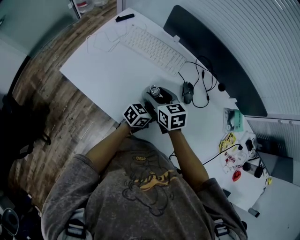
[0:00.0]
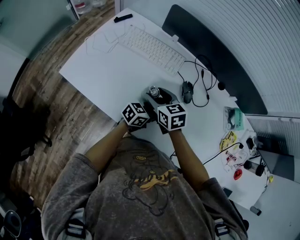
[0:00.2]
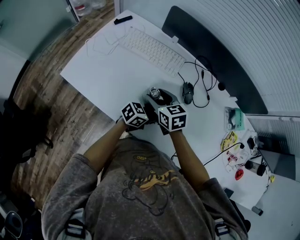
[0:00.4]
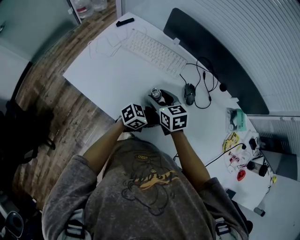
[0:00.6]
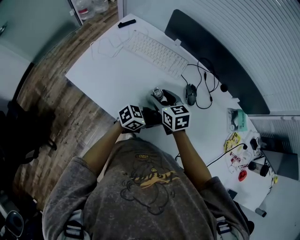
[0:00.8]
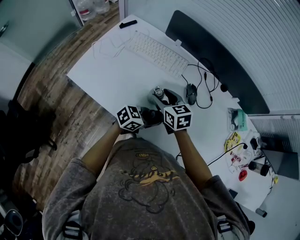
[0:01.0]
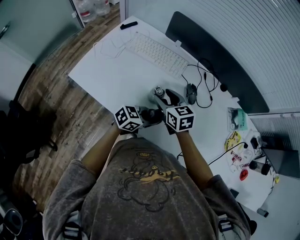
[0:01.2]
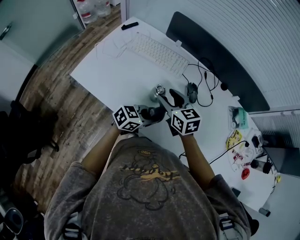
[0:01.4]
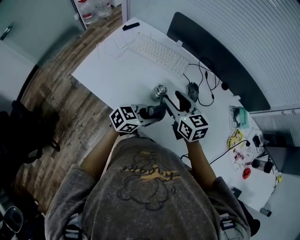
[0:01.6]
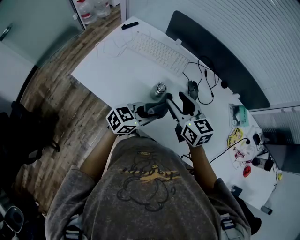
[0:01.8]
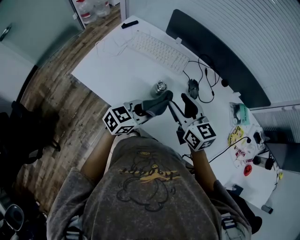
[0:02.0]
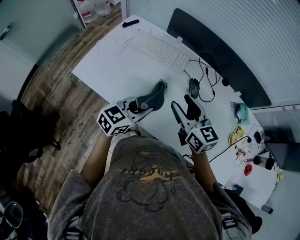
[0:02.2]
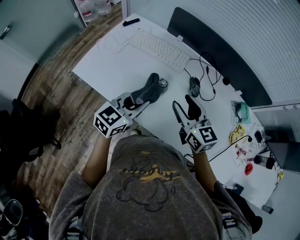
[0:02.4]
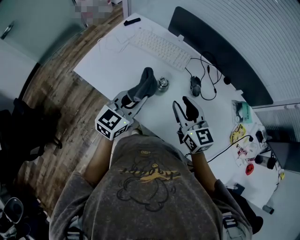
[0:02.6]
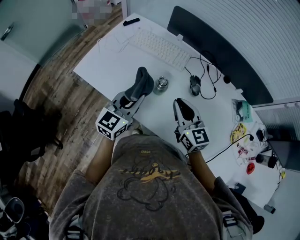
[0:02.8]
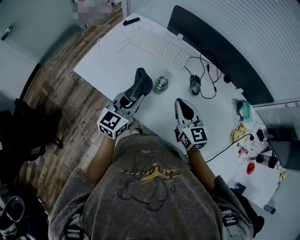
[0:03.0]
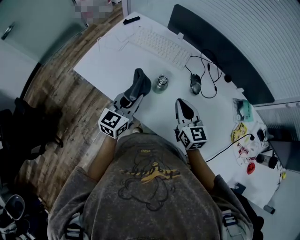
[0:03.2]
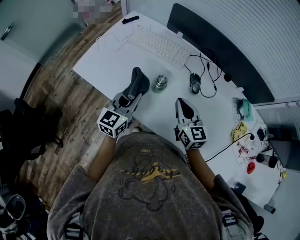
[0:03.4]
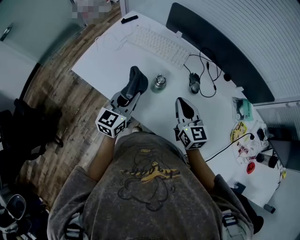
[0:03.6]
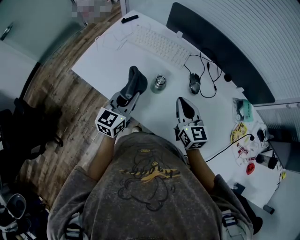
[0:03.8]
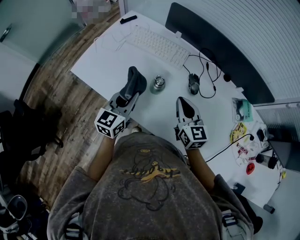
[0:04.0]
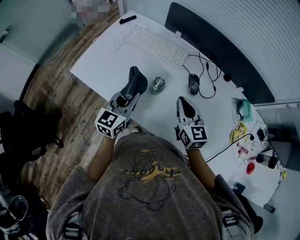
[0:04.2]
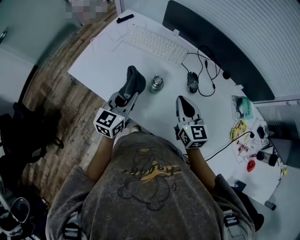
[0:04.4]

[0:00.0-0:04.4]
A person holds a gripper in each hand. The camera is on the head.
0:00.0 to 0:01.4: The left gripper ends up some 10 cm from where it was, while the right gripper goes some 5 cm upward.
0:01.4 to 0:03.0: The left gripper moves to the left and upward, roughly 15 cm, and rotates about 50 degrees. Meanwhile the right gripper heads to the right and backward, covering some 10 cm, goes upward and returns, roughly 10 cm each way, and closes.
0:03.0 to 0:04.4: The grippers make only small movements.

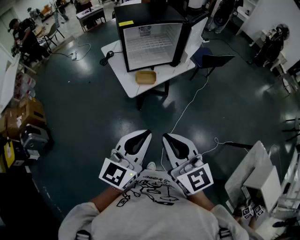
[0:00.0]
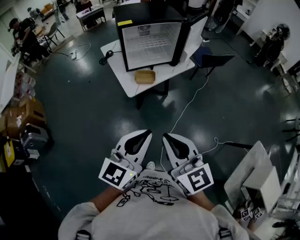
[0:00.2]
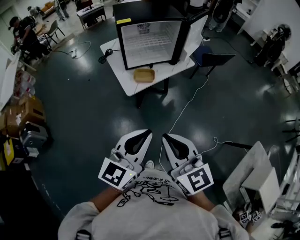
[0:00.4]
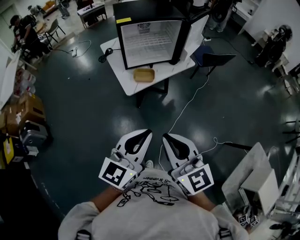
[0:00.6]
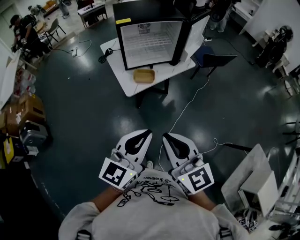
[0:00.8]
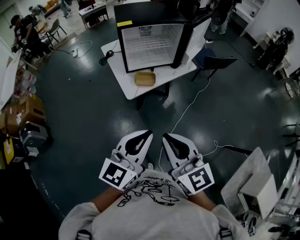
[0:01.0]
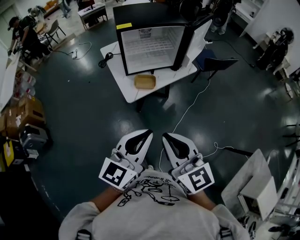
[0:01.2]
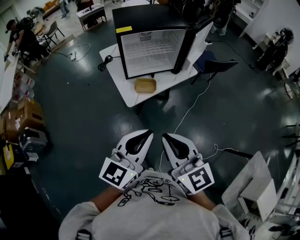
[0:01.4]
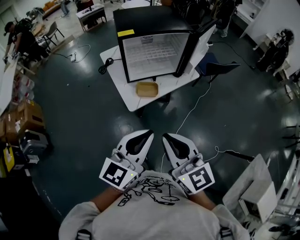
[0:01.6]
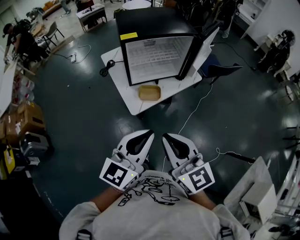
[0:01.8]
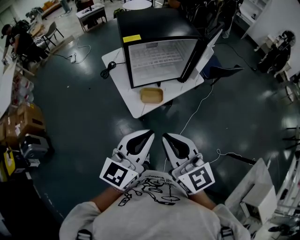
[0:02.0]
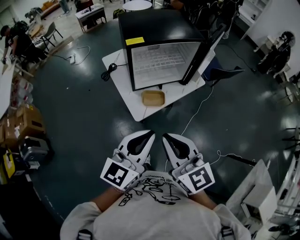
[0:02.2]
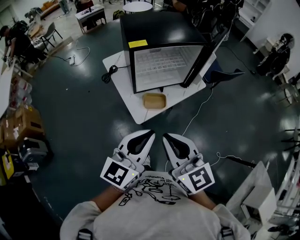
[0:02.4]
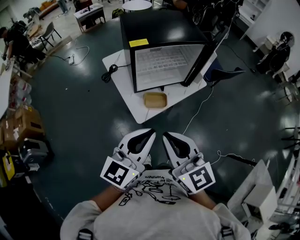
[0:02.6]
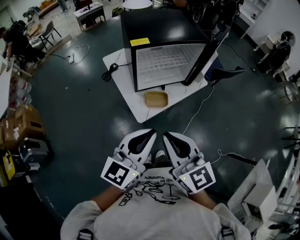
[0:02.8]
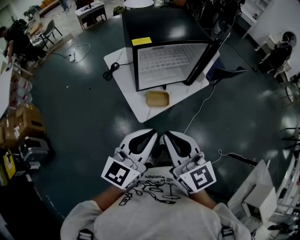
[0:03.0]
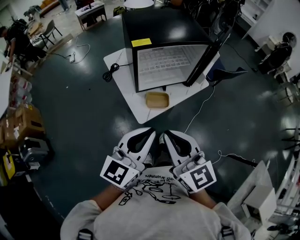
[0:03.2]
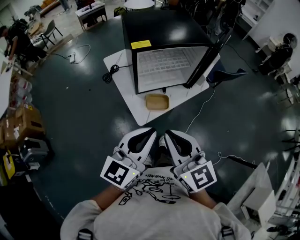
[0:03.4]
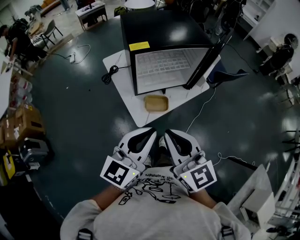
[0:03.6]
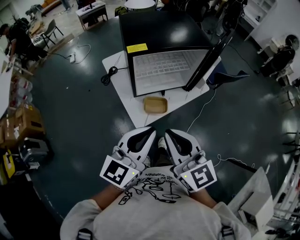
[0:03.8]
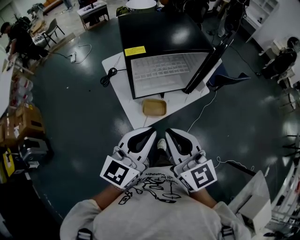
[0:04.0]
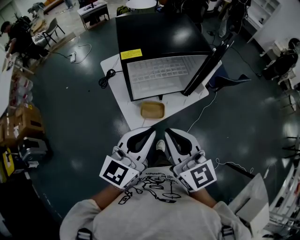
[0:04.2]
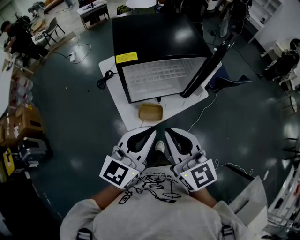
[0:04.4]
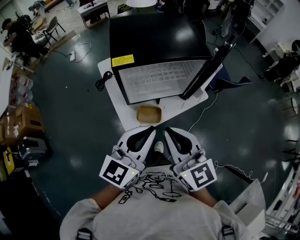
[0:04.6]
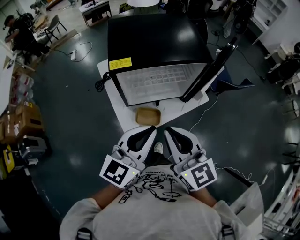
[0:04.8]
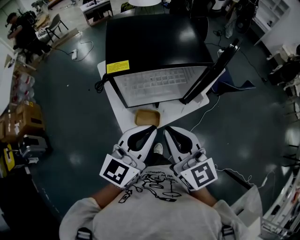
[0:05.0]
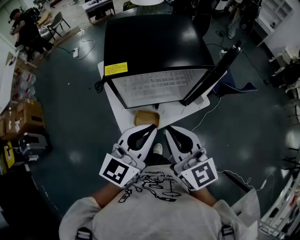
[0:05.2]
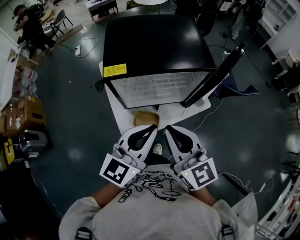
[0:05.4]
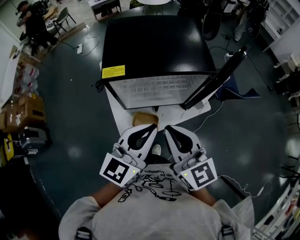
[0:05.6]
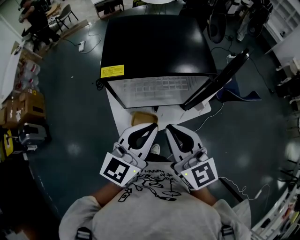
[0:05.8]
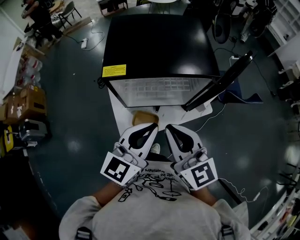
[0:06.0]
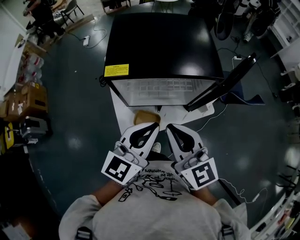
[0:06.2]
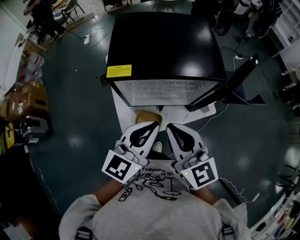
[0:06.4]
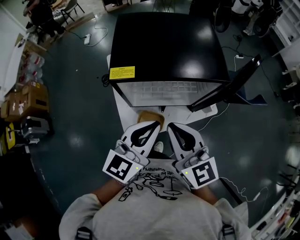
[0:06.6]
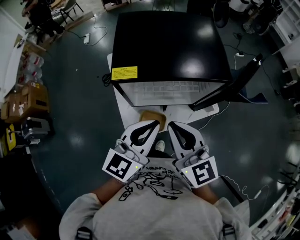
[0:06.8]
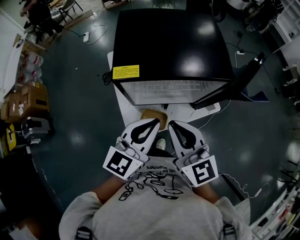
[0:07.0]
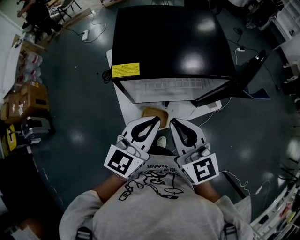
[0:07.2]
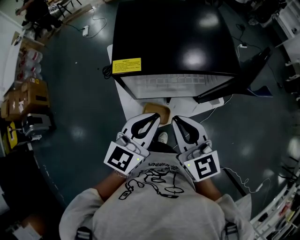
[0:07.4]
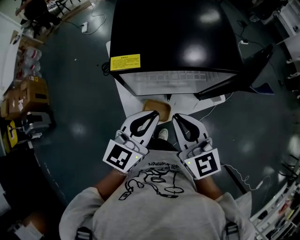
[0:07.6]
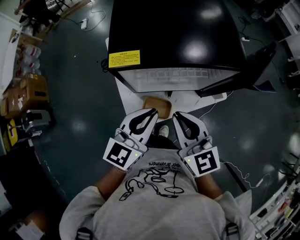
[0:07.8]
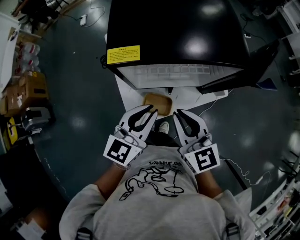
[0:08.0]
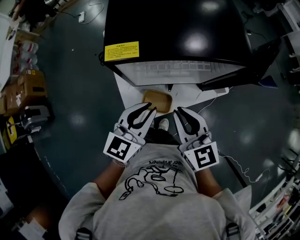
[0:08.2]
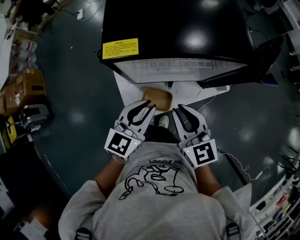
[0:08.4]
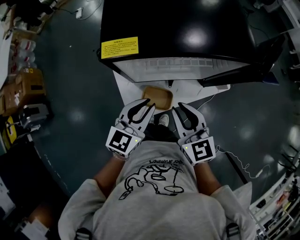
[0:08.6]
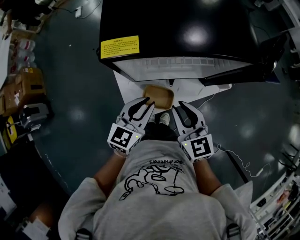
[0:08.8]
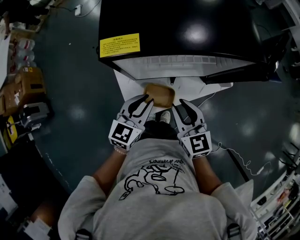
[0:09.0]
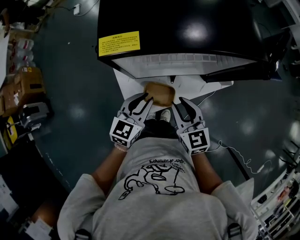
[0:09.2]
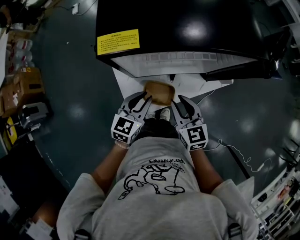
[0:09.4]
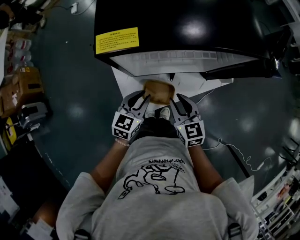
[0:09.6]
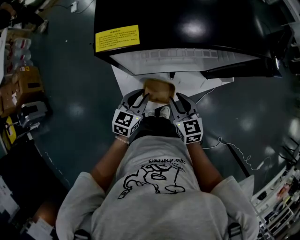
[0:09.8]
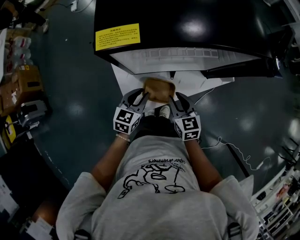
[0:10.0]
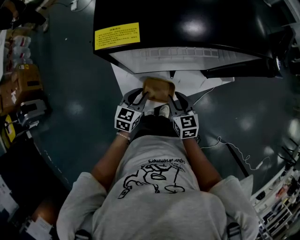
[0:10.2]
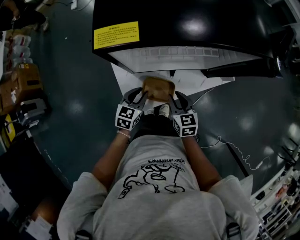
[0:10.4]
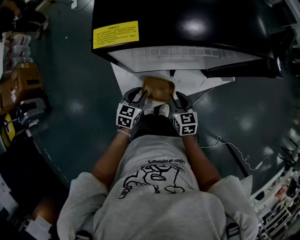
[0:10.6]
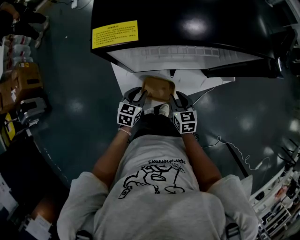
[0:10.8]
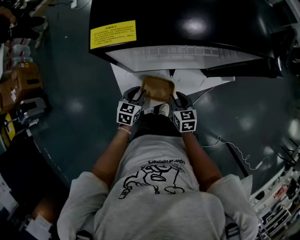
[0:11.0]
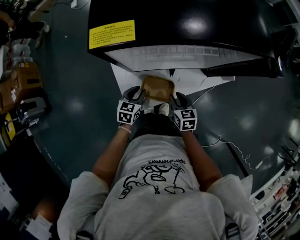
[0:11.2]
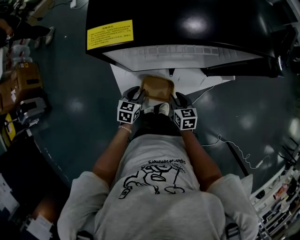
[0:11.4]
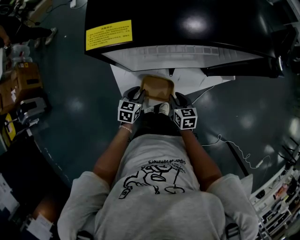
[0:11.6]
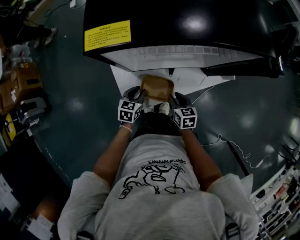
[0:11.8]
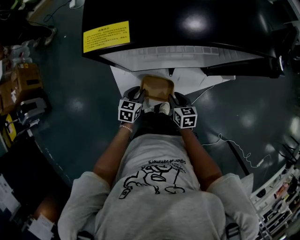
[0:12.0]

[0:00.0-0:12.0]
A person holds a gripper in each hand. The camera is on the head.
0:00.0 to 0:01.6: The two grippers go about 15 cm forward.
0:01.6 to 0:03.0: The grippers both shift forward and to the left by approximately 15 cm.
0:03.0 to 0:04.4: Both grippers travel together forward and to the right, some 15 cm.
0:04.4 to 0:06.0: Both grippers move forward and to the right, some 15 cm.
0:06.0 to 0:07.6: The right gripper shifts about 5 cm downward. The left gripper moves downward and to the left, some 10 cm.
0:07.6 to 0:09.0: The grippers both shift downward by about 15 cm.
0:09.0 to 0:10.4: The two grippers go some 15 cm downward.
0:10.4 to 0:12.0: Both grippers move downward, about 10 cm.

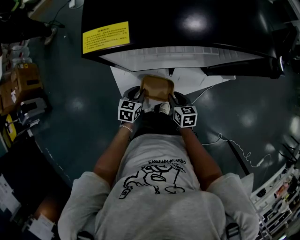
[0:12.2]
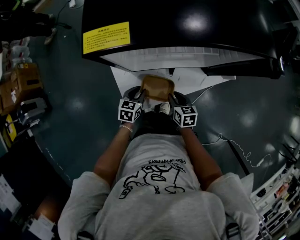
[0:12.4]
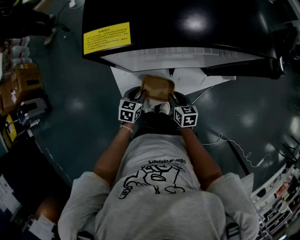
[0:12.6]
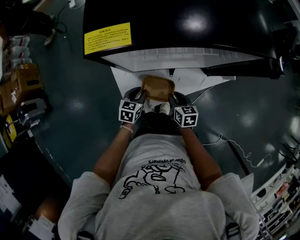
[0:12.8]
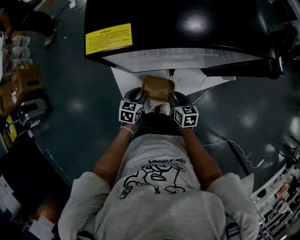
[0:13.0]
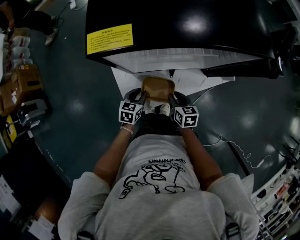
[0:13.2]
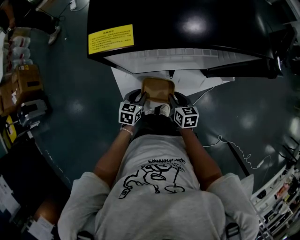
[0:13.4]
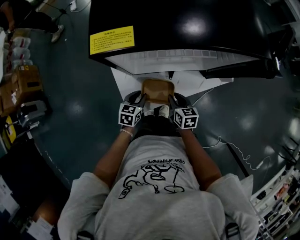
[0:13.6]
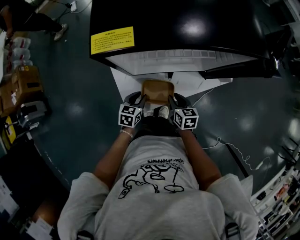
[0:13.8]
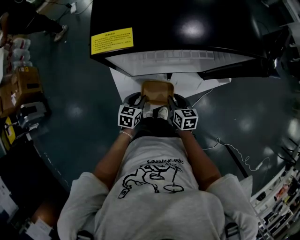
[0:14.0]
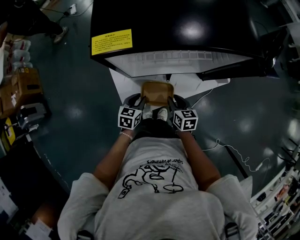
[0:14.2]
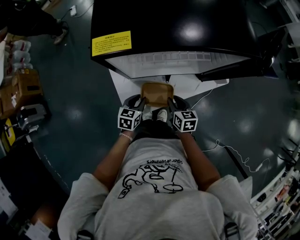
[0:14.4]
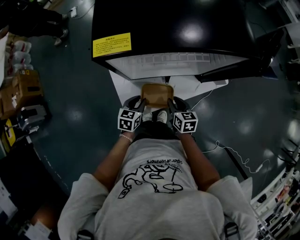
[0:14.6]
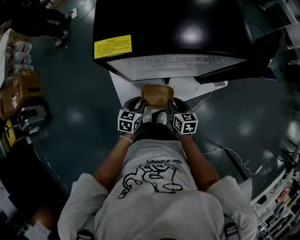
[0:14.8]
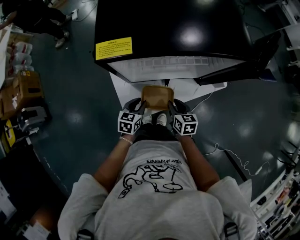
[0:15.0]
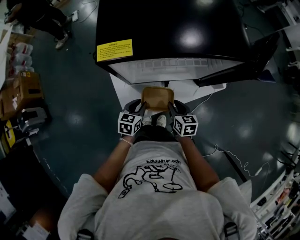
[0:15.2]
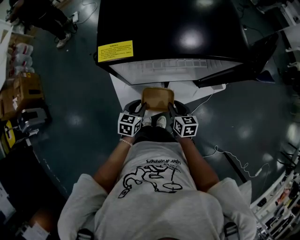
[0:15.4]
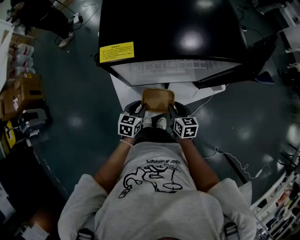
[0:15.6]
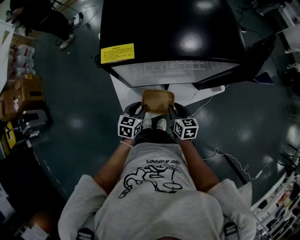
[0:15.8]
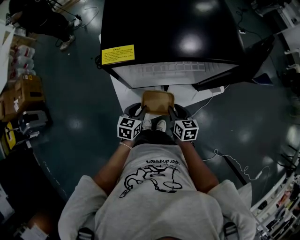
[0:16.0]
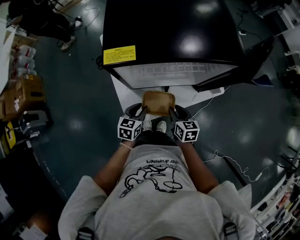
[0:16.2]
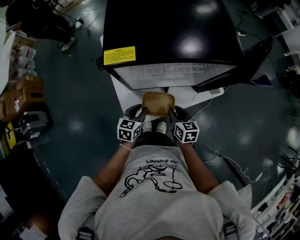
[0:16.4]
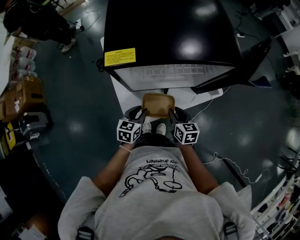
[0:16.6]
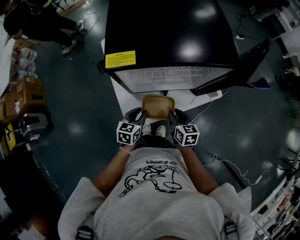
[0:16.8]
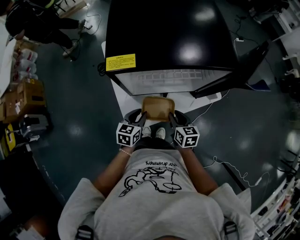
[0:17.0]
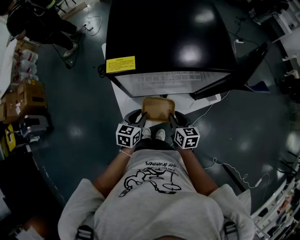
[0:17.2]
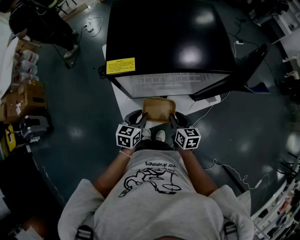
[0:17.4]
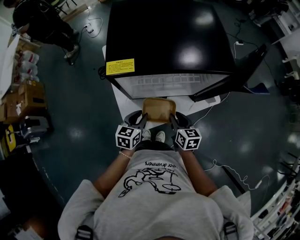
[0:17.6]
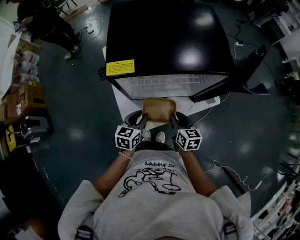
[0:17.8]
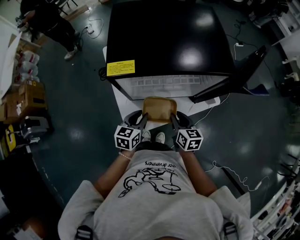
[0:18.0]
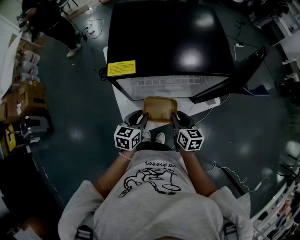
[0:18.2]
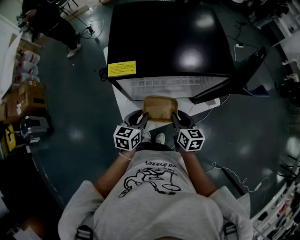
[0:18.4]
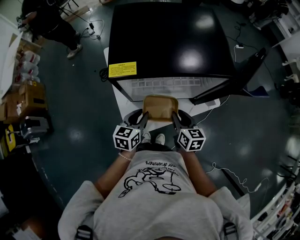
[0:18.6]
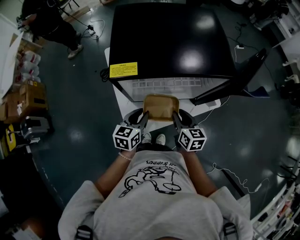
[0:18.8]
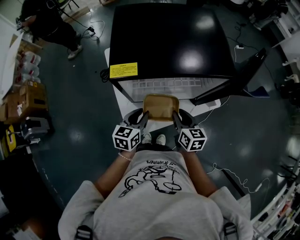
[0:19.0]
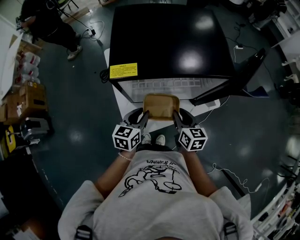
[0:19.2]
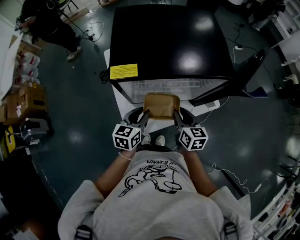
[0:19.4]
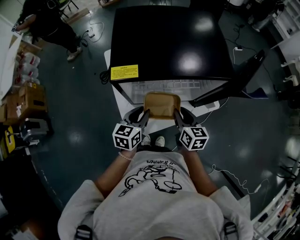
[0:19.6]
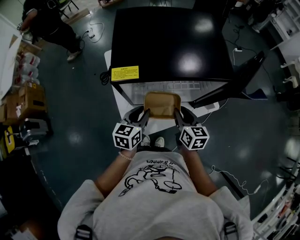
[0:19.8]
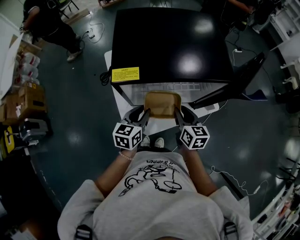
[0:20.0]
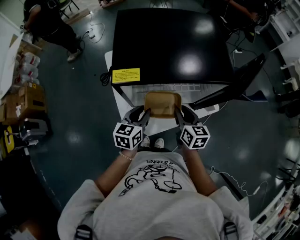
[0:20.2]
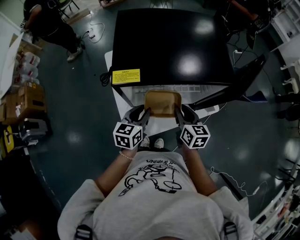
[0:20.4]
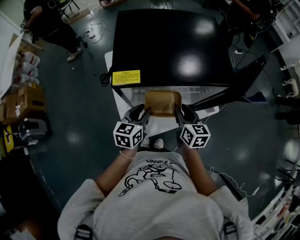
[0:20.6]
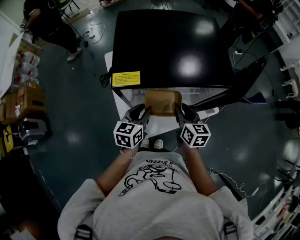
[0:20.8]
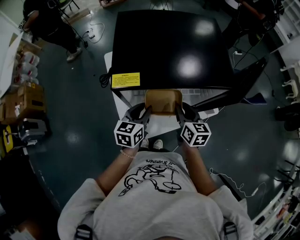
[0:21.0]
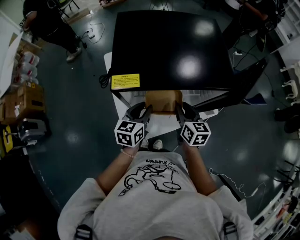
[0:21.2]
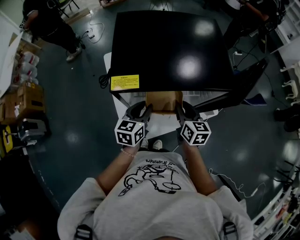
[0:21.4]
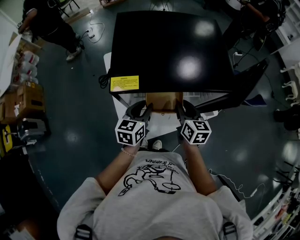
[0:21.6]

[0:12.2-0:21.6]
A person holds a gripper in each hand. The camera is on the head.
0:12.2 to 0:13.8: The grippers move only a little.
0:13.8 to 0:15.4: The left gripper shifts about 5 cm upward.
0:15.4 to 0:17.0: The two grippers go roughly 5 cm upward.
0:17.0 to 0:18.4: Both grippers move upward, roughly 5 cm.
0:18.4 to 0:20.0: The left gripper goes approximately 5 cm upward; the right gripper shifts by roughly 5 cm.
0:20.0 to 0:21.6: Both grippers travel together forward, approximately 5 cm.
